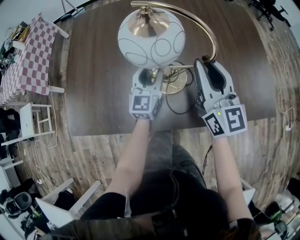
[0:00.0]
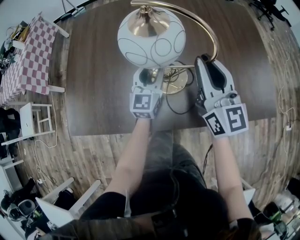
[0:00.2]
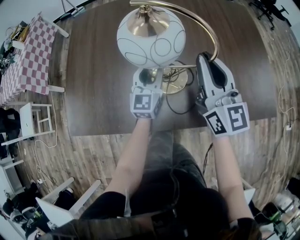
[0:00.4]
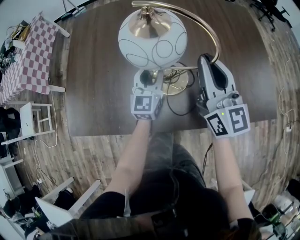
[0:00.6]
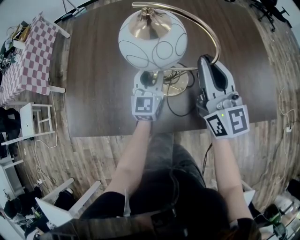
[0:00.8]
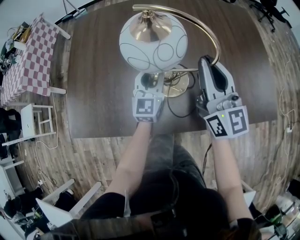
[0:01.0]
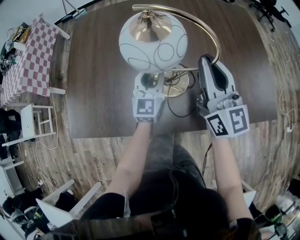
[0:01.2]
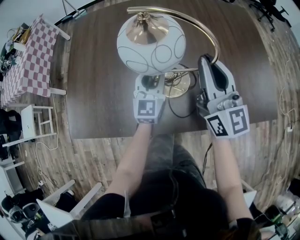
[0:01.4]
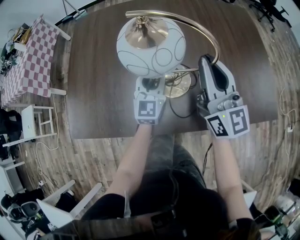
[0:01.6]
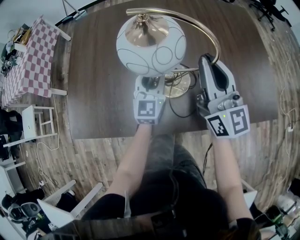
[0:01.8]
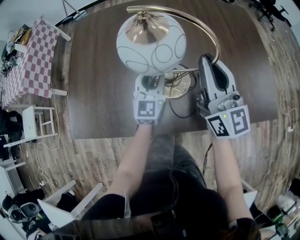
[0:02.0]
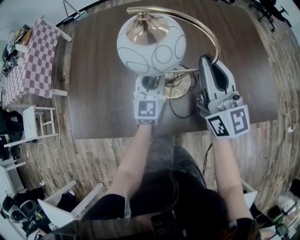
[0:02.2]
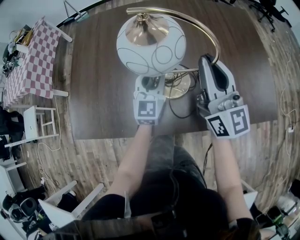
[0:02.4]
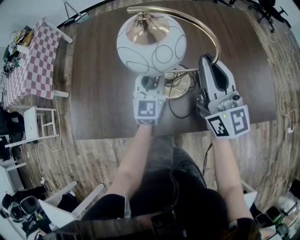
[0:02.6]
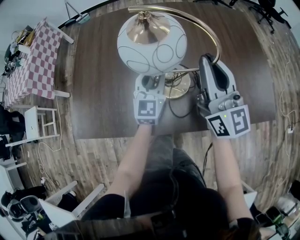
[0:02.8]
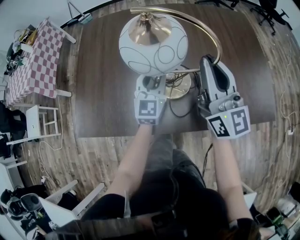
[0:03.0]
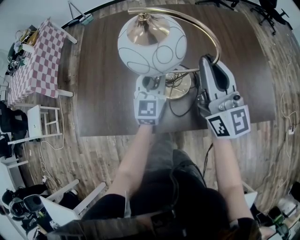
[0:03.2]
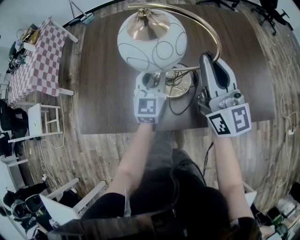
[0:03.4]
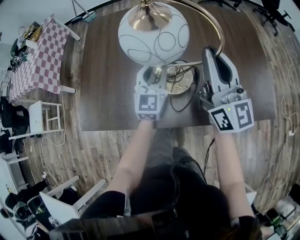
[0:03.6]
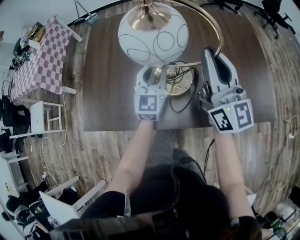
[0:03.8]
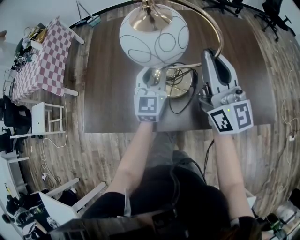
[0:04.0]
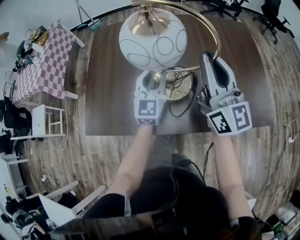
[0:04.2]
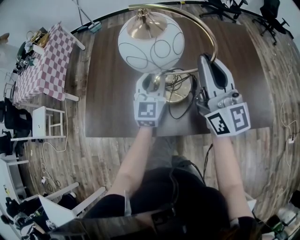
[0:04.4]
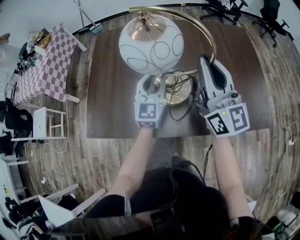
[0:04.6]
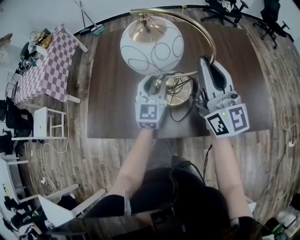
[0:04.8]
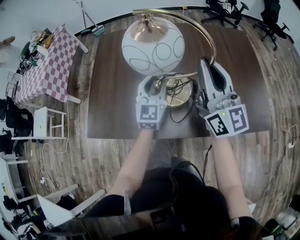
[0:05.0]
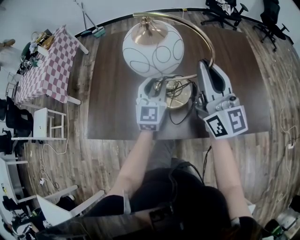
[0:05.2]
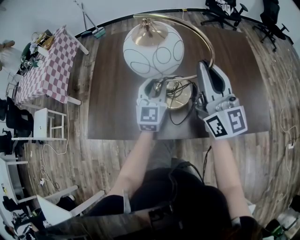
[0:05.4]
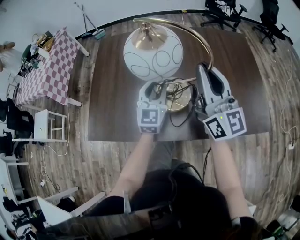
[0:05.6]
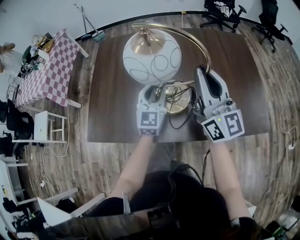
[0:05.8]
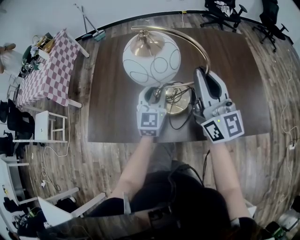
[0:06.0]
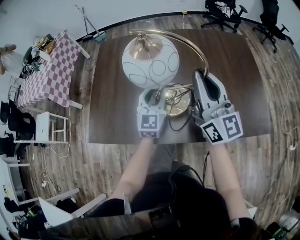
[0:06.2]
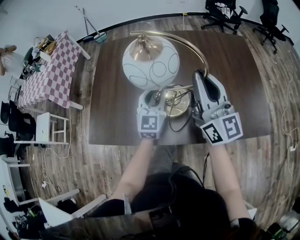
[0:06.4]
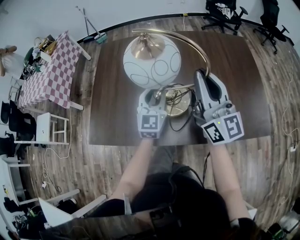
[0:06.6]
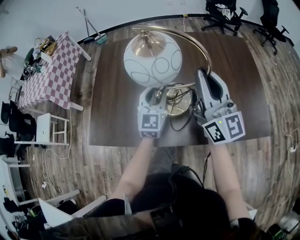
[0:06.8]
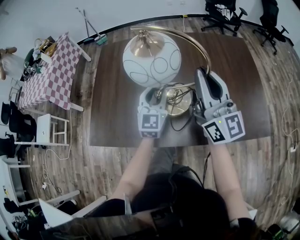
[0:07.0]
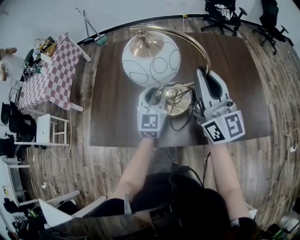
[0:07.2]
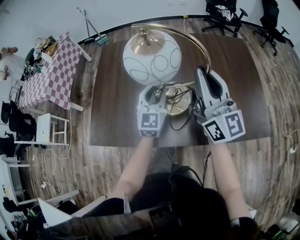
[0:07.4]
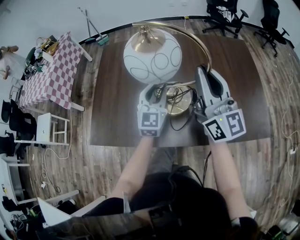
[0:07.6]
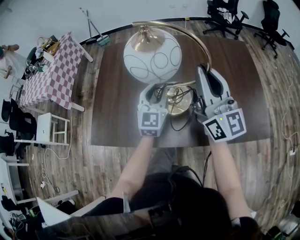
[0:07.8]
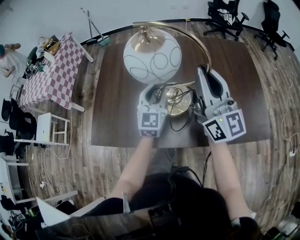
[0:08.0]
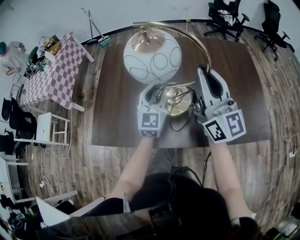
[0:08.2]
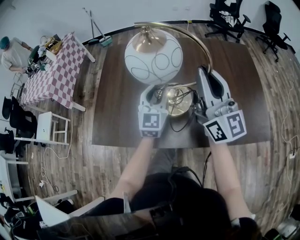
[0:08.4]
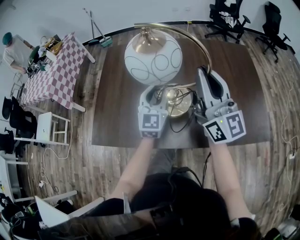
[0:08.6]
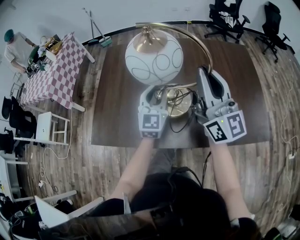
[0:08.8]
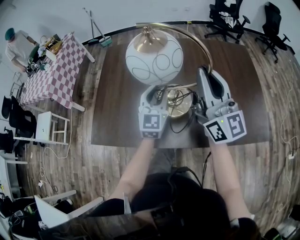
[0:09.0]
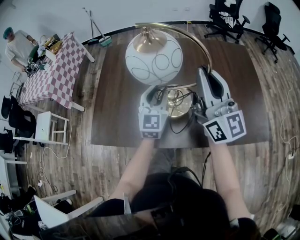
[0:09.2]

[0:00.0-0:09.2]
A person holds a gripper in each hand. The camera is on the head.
0:00.0 to 0:01.6: The grippers stay close to where they were, moving slightly.
0:01.6 to 0:03.0: The grippers stay close to where they were, moving slightly.
0:03.0 to 0:04.6: Both grippers move upward, about 5 cm.
0:04.6 to 0:06.2: Neither gripper changes place.
0:06.2 to 0:09.2: The grippers make only small movements.

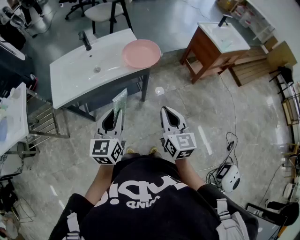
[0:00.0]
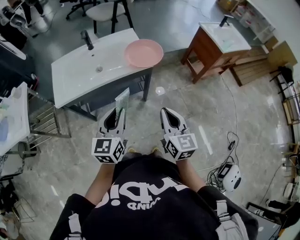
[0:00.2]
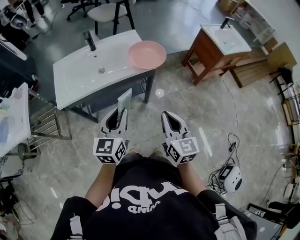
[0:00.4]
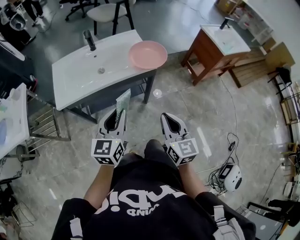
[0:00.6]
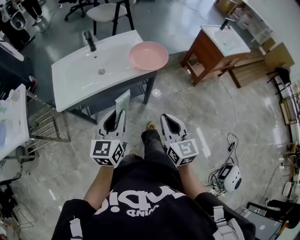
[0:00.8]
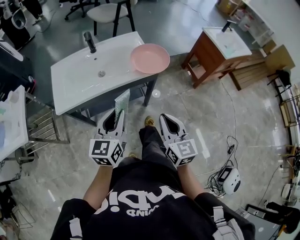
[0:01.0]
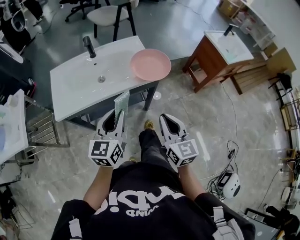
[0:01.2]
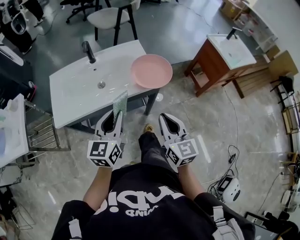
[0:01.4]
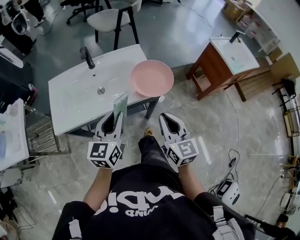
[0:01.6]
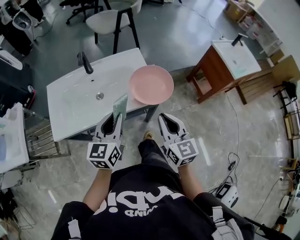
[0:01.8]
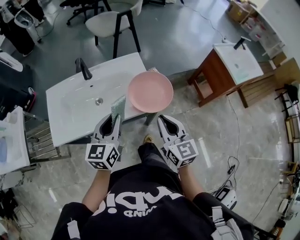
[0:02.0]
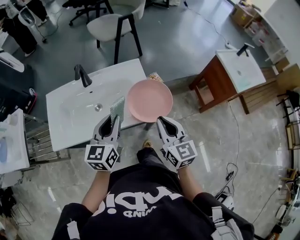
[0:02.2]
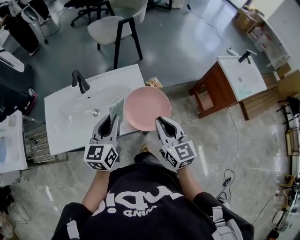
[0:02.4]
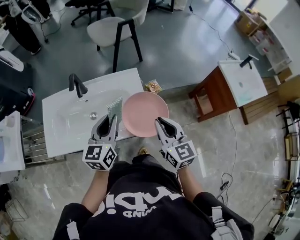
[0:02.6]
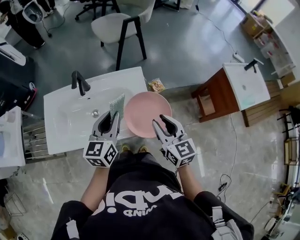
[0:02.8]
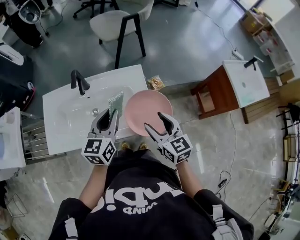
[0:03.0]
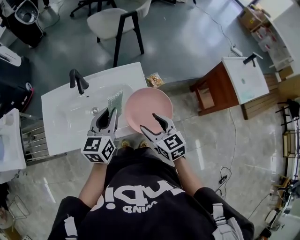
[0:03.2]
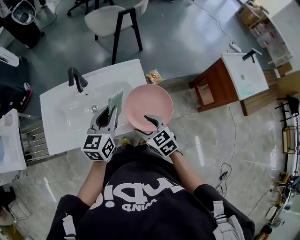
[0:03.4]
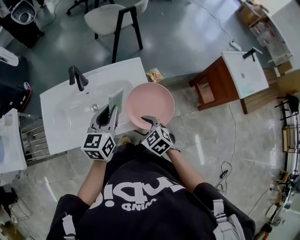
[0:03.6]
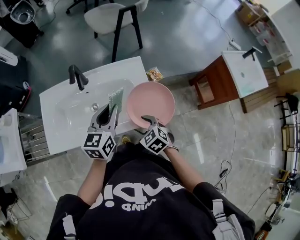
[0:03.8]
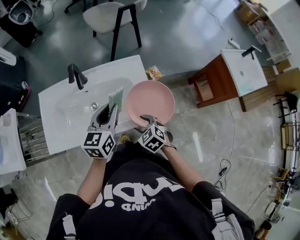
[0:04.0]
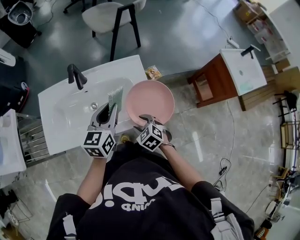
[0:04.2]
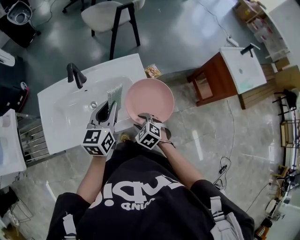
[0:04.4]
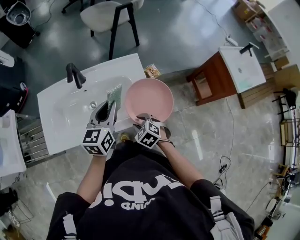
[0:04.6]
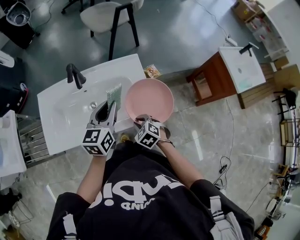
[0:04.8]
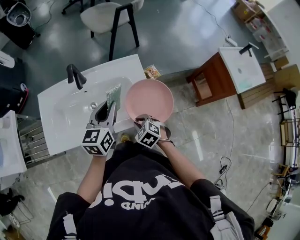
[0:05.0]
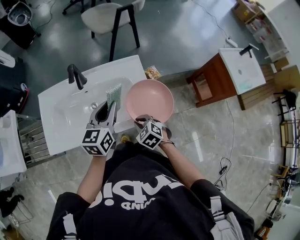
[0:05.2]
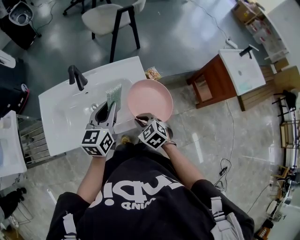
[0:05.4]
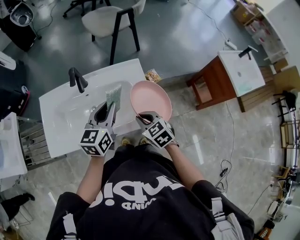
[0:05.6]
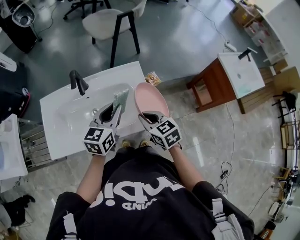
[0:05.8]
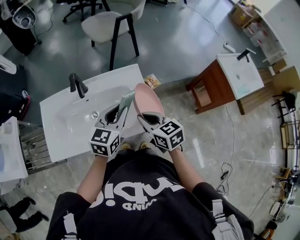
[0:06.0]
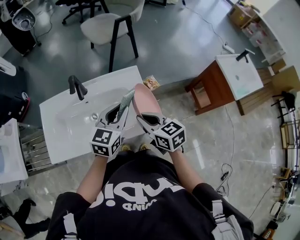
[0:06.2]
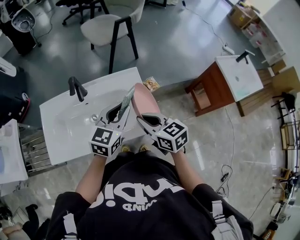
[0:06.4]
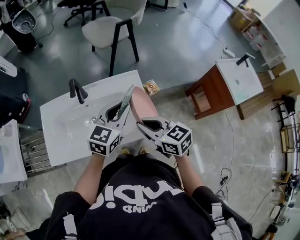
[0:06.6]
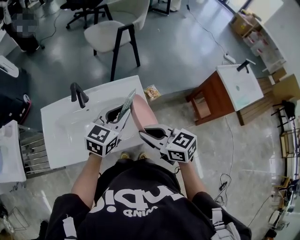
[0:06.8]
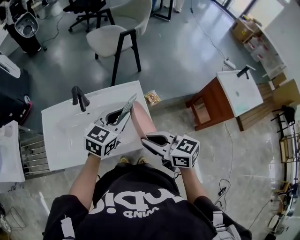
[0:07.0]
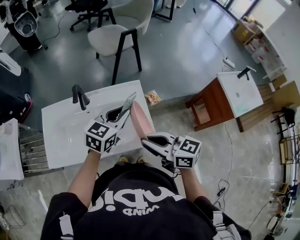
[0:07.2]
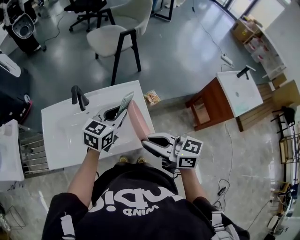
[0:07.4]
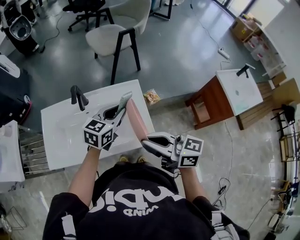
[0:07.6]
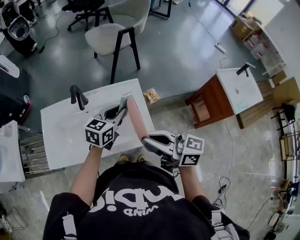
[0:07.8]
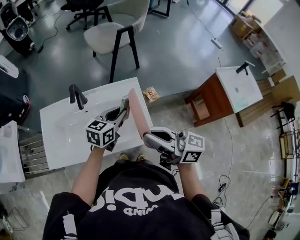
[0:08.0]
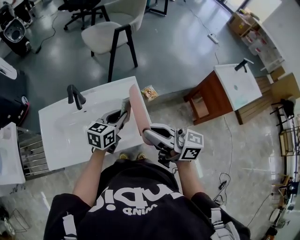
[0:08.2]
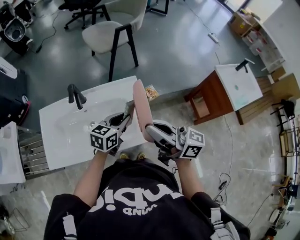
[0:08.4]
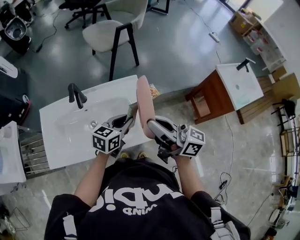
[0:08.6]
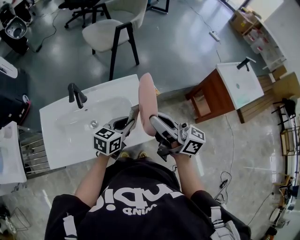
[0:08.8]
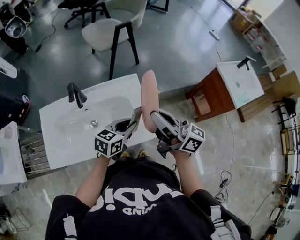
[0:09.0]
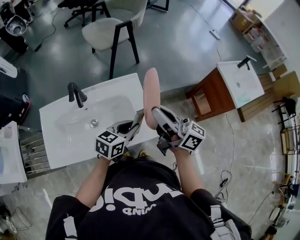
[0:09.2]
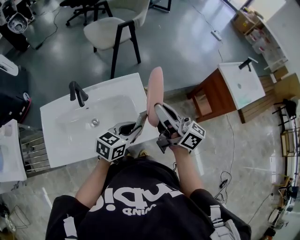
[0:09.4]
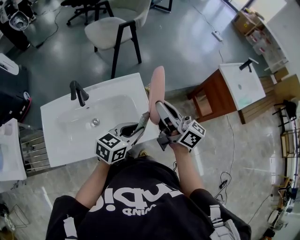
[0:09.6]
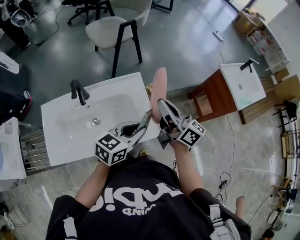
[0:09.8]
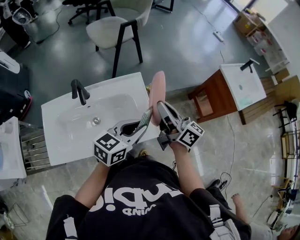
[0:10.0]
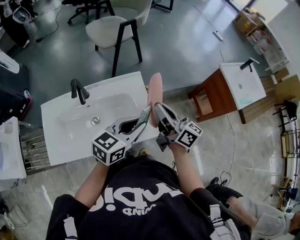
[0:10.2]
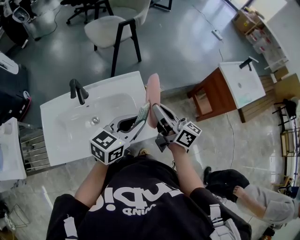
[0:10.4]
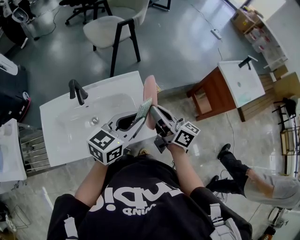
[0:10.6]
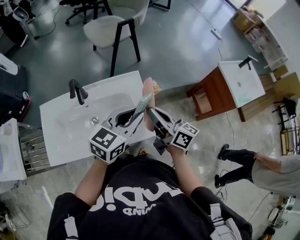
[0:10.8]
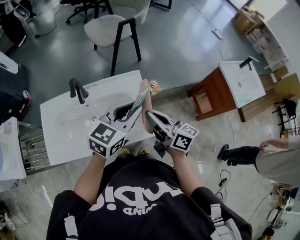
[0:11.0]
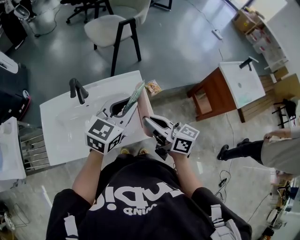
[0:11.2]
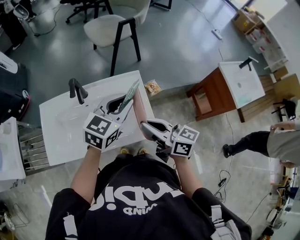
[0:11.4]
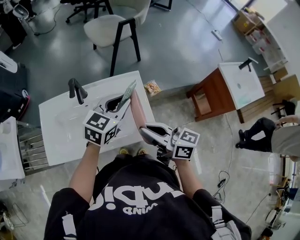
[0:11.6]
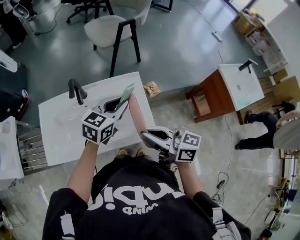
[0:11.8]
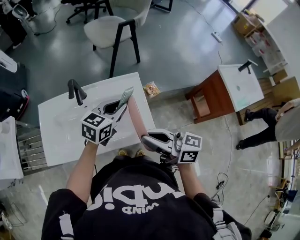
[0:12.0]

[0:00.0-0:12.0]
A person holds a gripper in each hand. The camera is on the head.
0:00.0 to 0:01.6: Both grippers move forward, approximately 15 cm.
0:01.6 to 0:03.0: The two grippers go roughly 20 cm forward. The right gripper opens.
0:03.0 to 0:04.4: The right gripper travels downward and to the left by about 20 cm, and points its fingers some 40 degrees further downward.
0:04.4 to 0:06.0: The right gripper is displaced upward by about 15 cm, changes its angle by about 40 degrees, and closes up.
0:06.0 to 0:07.6: The left gripper goes roughly 5 cm forward. The right gripper heads upward, covering approximately 10 cm, and swivels roughly 40 degrees.
0:07.6 to 0:09.0: The right gripper travels forward and to the right by about 10 cm, and turns by approximately 30 degrees. Meanwhile the left gripper heads backward and downward, covering some 10 cm.
0:09.0 to 0:10.4: The left gripper is displaced upward by approximately 10 cm. The right gripper moves downward, about 5 cm.
0:10.4 to 0:12.0: The left gripper travels forward and to the left by approximately 10 cm. The right gripper goes approximately 10 cm backward and to the left, and changes its angle by roughly 30 degrees.

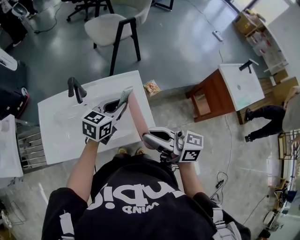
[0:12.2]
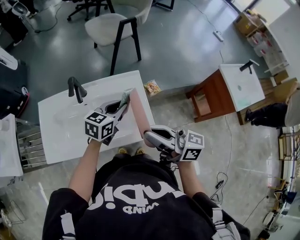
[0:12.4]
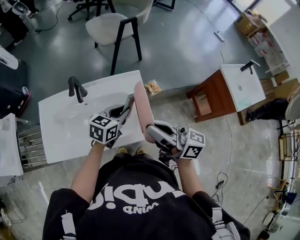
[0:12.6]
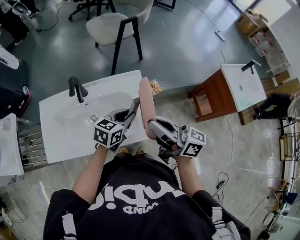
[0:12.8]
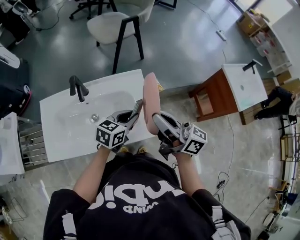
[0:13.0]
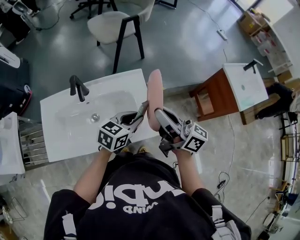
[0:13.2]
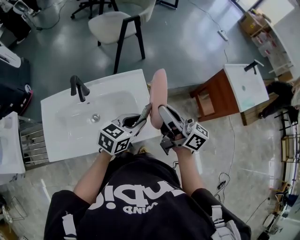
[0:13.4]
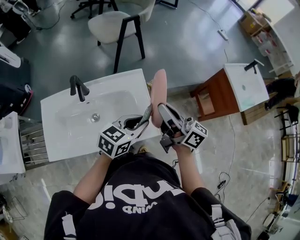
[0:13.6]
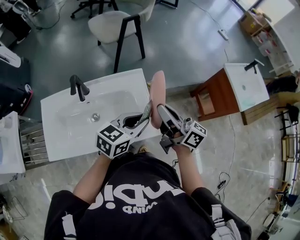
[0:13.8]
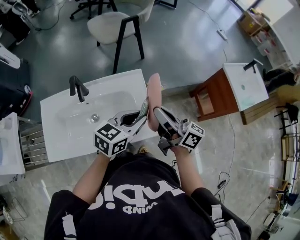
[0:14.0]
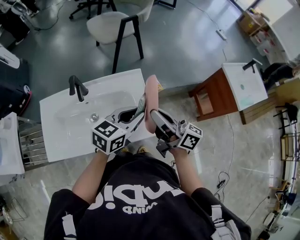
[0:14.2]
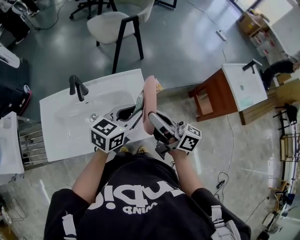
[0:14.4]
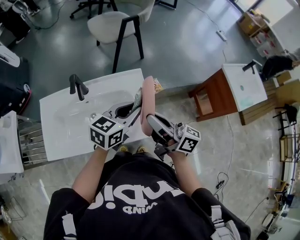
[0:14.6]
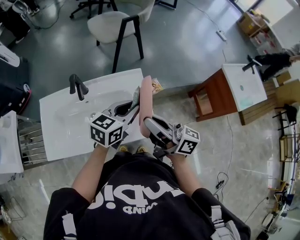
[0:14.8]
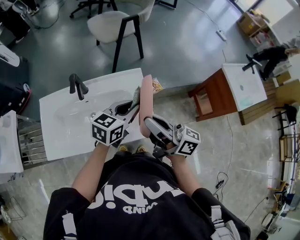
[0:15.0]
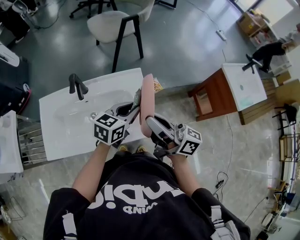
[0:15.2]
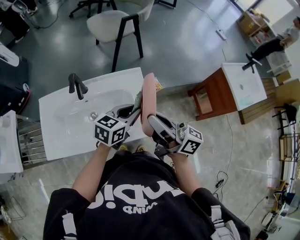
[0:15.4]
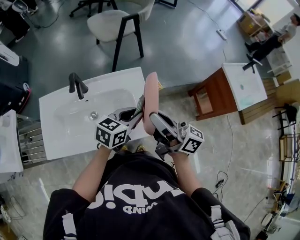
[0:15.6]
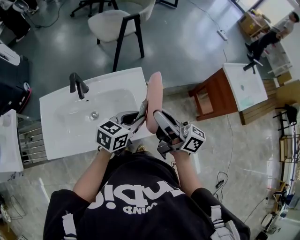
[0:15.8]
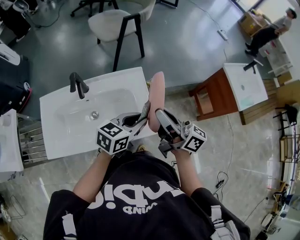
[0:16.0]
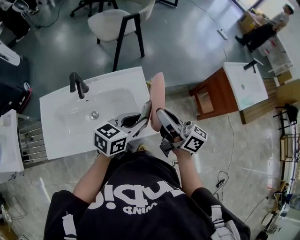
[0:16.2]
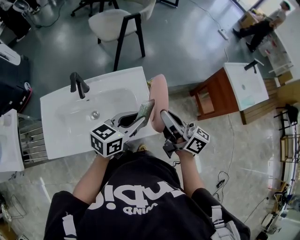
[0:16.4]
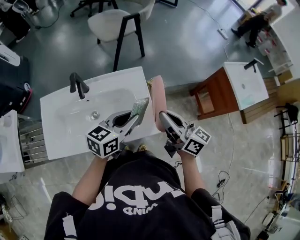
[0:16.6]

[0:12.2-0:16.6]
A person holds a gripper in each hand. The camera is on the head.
0:12.2 to 0:13.6: The right gripper shifts roughly 10 cm forward and to the right, and turns by some 20 degrees, while the left gripper heads backward and to the right, covering roughly 10 cm.
0:13.6 to 0:15.2: The right gripper heads backward, covering some 5 cm. The left gripper shifts approximately 5 cm forward.
0:15.2 to 0:16.6: The right gripper ends up some 5 cm from where it was, and swivels about 20 degrees.
